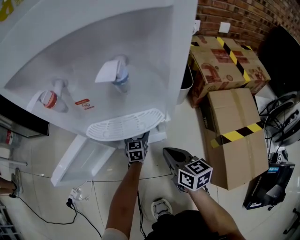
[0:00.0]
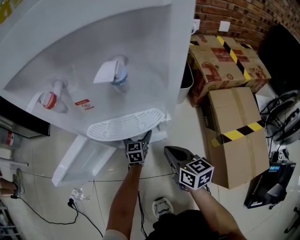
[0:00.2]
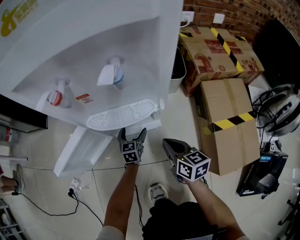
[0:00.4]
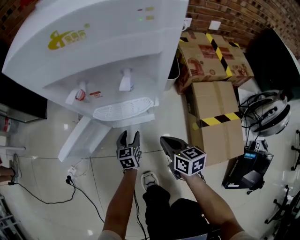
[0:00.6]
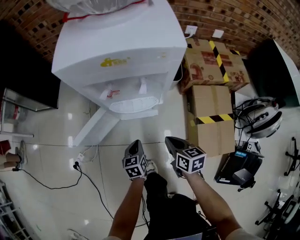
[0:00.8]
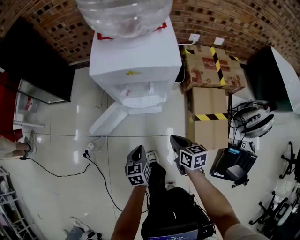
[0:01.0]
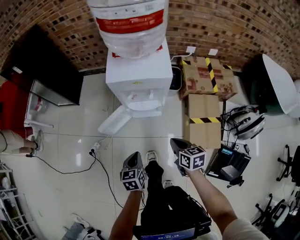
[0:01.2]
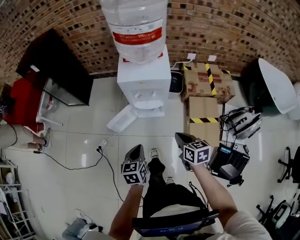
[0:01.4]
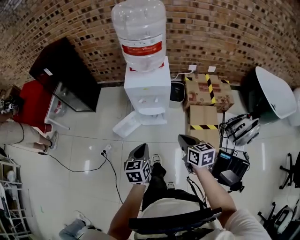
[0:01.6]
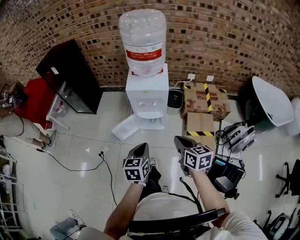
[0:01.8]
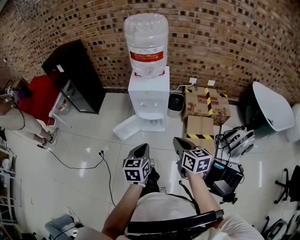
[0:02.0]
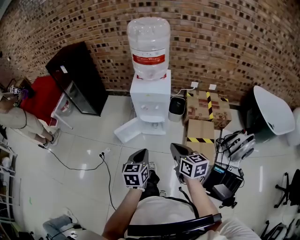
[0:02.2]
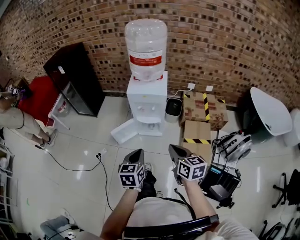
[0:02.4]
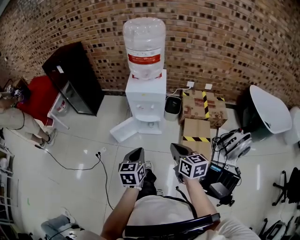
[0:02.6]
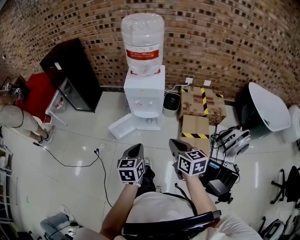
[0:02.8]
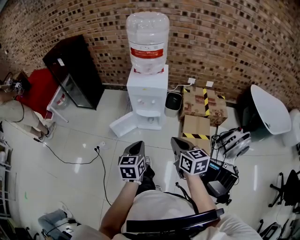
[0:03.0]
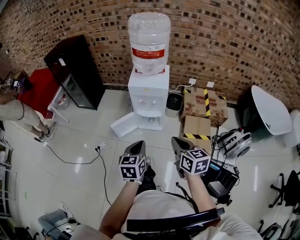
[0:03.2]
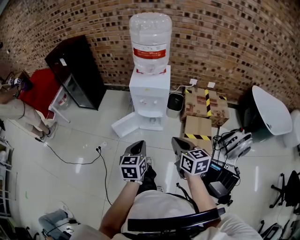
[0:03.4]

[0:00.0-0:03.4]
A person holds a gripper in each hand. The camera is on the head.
0:00.0 to 0:01.6: Both grippers move upward and backward, approximately 70 cm. The left gripper closes its fingers.
0:01.6 to 0:03.4: Both grippers move upward and backward, about 10 cm.

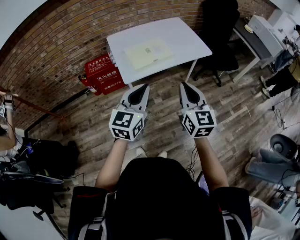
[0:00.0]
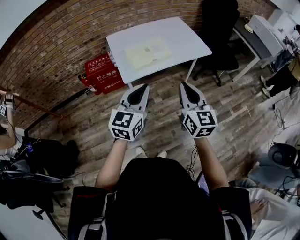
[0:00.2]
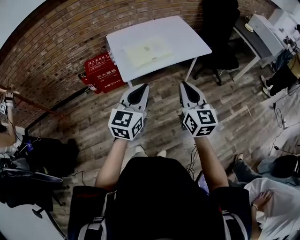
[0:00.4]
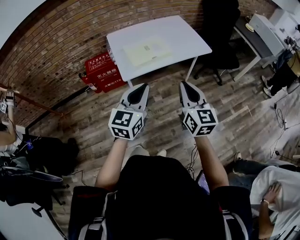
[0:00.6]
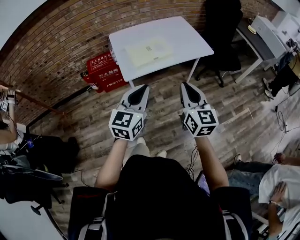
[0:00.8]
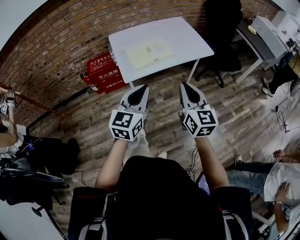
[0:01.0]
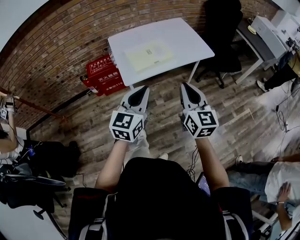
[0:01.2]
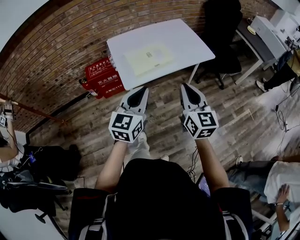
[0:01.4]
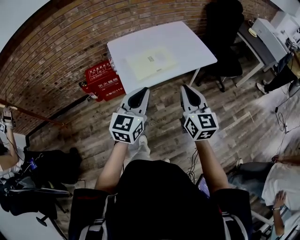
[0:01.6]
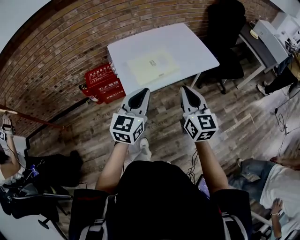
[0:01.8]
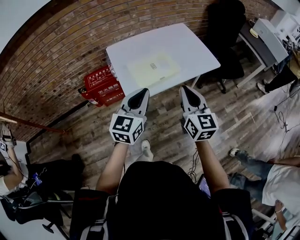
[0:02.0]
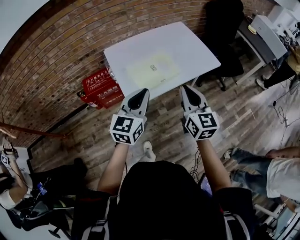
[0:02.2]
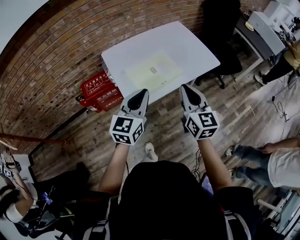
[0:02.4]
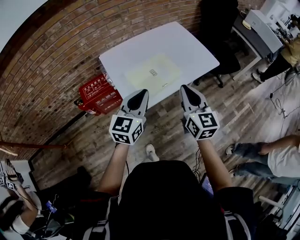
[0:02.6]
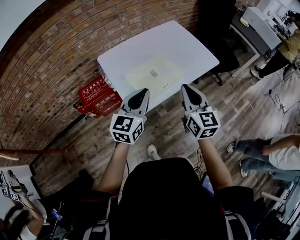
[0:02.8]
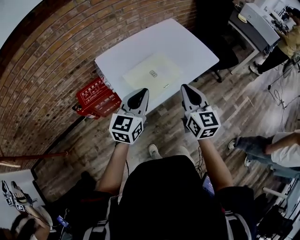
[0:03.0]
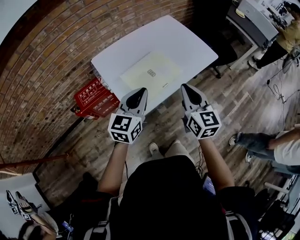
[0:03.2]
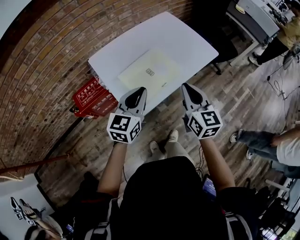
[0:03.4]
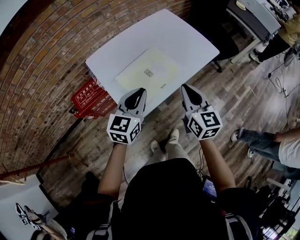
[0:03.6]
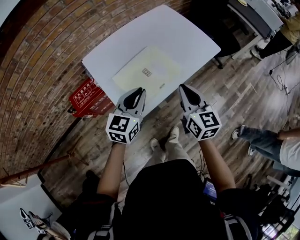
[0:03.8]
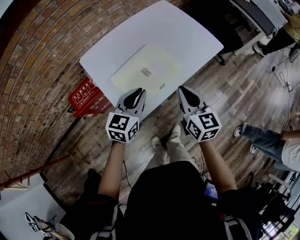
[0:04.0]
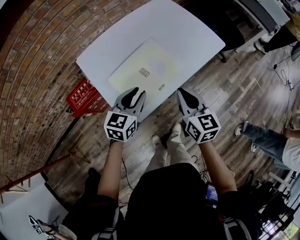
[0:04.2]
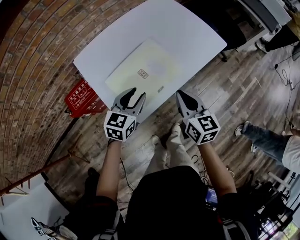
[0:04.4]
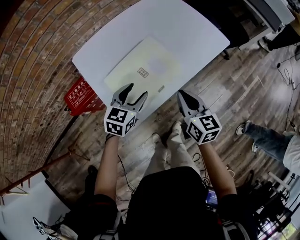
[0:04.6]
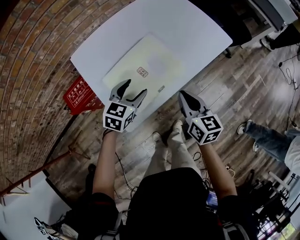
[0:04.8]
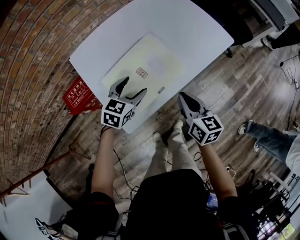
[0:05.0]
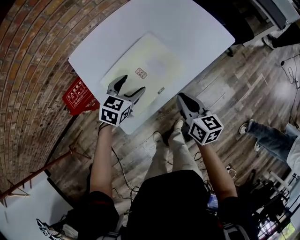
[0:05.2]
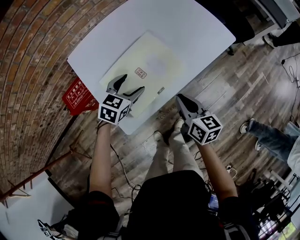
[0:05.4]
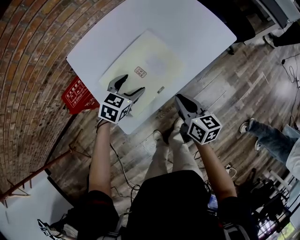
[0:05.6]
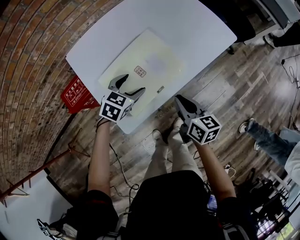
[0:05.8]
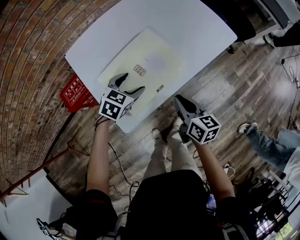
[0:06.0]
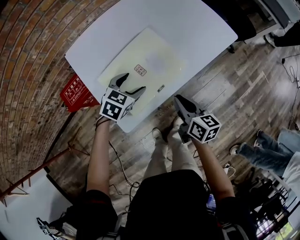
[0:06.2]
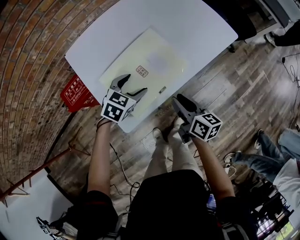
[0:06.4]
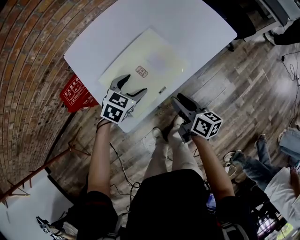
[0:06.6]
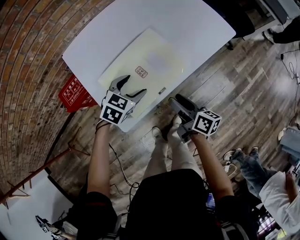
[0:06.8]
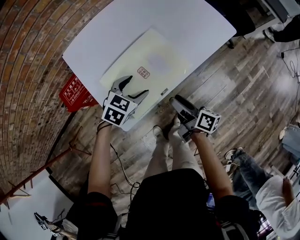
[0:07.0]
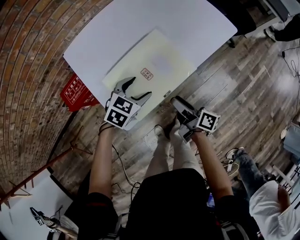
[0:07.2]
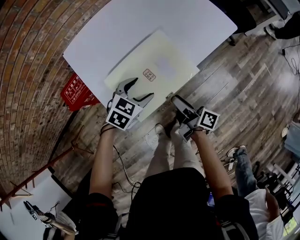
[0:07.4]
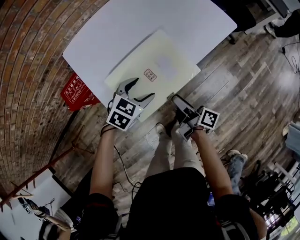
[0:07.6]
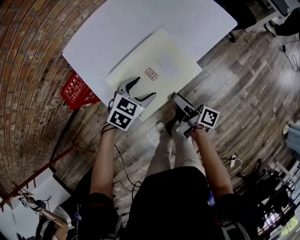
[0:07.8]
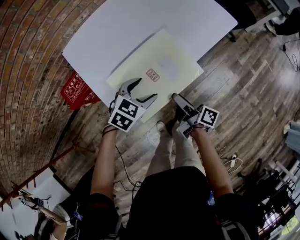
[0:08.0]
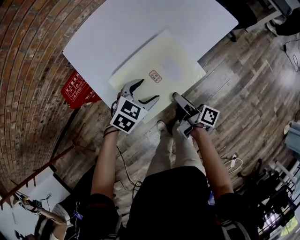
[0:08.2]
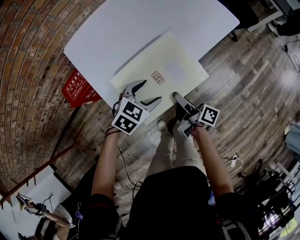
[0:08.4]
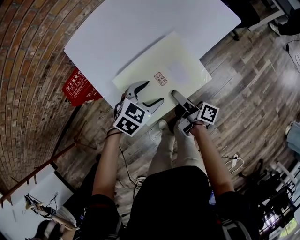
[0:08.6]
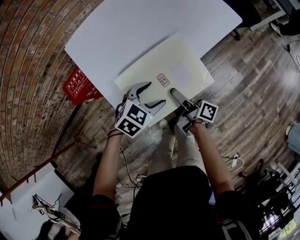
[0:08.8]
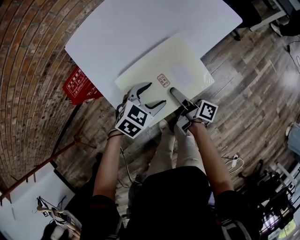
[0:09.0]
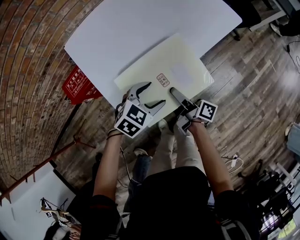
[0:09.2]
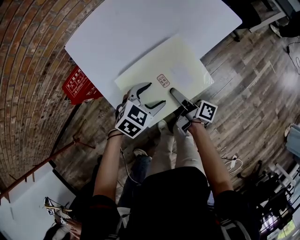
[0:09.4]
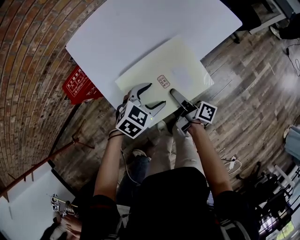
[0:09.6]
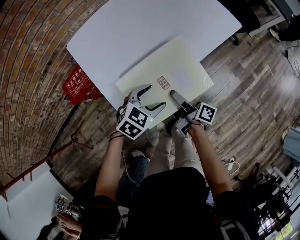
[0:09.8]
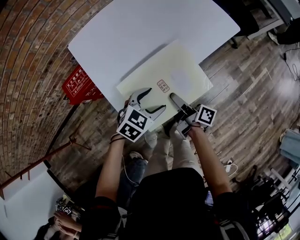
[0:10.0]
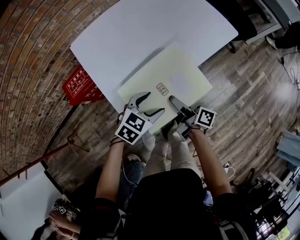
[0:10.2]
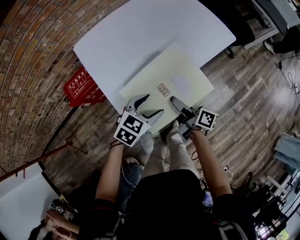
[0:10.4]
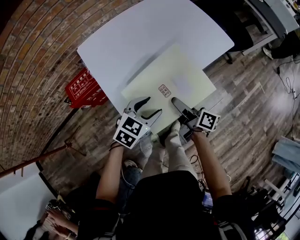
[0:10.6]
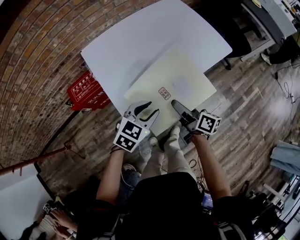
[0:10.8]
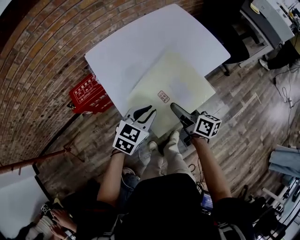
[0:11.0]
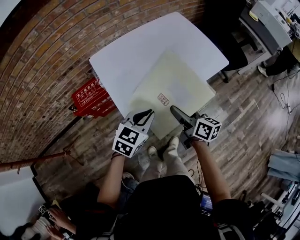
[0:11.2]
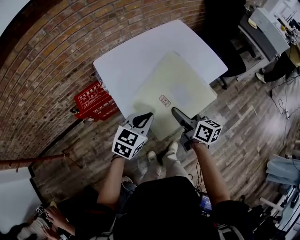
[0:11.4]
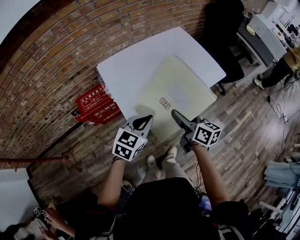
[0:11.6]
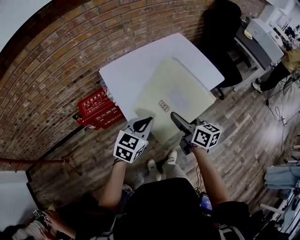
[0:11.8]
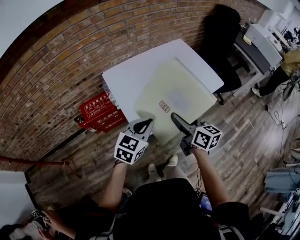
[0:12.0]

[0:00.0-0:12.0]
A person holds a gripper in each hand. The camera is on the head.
0:00.0 to 0:01.6: Both grippers move forward, approximately 10 cm.
0:01.6 to 0:03.0: The two grippers go about 20 cm forward and to the left.
0:03.0 to 0:04.4: Both grippers travel together downward and forward, roughly 20 cm. The left gripper changes its angle by about 20 degrees, and opens up.
0:04.4 to 0:06.0: The right gripper travels downward by approximately 10 cm. Meanwhile the left gripper is displaced downward and forward by some 10 cm, swivels about 20 degrees, and opens.
0:06.0 to 0:07.6: The right gripper shifts by approximately 5 cm, rolls clockwise, seen from behind, by some 40 degrees, and opens up; the left gripper shifts roughly 5 cm backward.
0:07.6 to 0:09.0: The left gripper heads backward, covering approximately 5 cm.
0:09.0 to 0:10.4: The left gripper changes place by approximately 5 cm.
0:10.4 to 0:12.0: The left gripper goes approximately 20 cm upward and to the left, turns by approximately 20 degrees, and closes up; the right gripper shifts some 20 cm upward, and rotates around the line of its fingers by roughly 40 degrees, counterclockwise from behind.

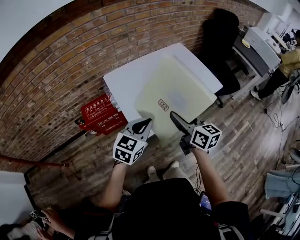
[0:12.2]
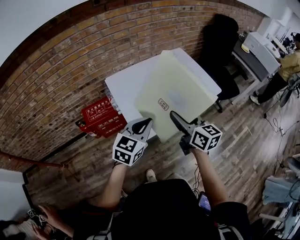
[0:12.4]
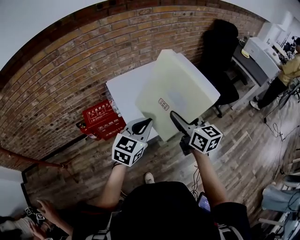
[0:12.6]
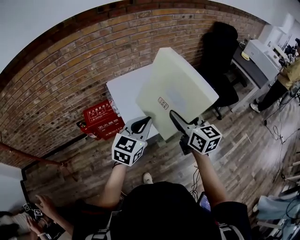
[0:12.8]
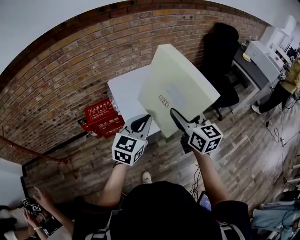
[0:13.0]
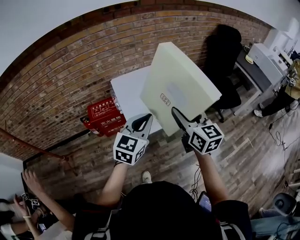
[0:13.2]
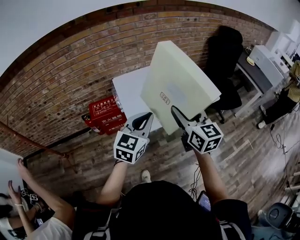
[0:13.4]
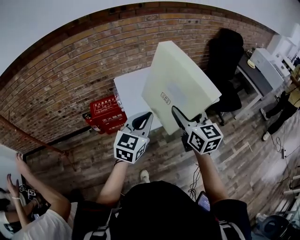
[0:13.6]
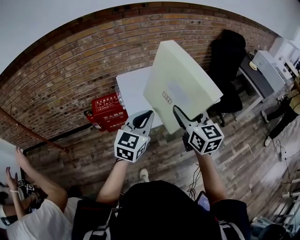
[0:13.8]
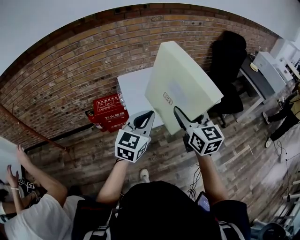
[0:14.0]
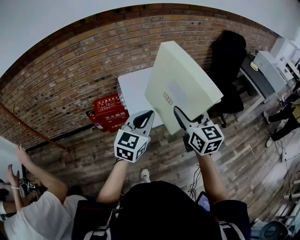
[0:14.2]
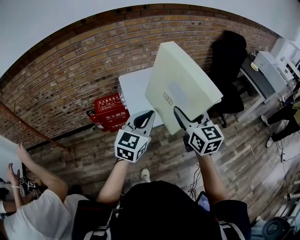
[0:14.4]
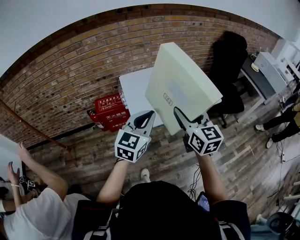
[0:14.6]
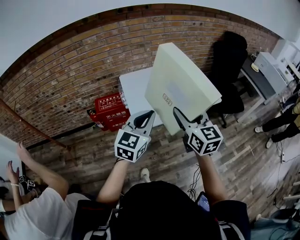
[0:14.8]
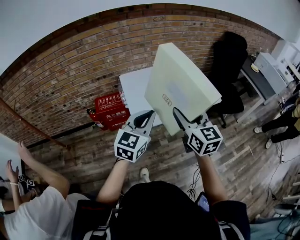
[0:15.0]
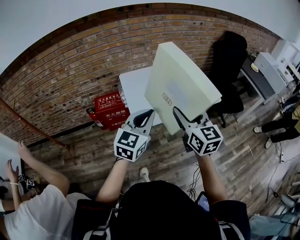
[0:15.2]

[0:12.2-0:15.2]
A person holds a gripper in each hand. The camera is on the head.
0:12.2 to 0:13.8: The grippers both shift upward, backward and to the right by some 15 cm. The right gripper turns by some 20 degrees, while the left gripper turns by some 20 degrees.
0:13.8 to 0:15.2: The grippers stay close to where they were, moving slightly.

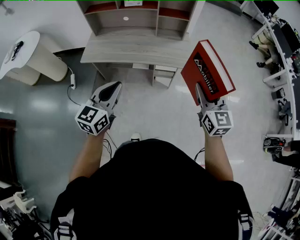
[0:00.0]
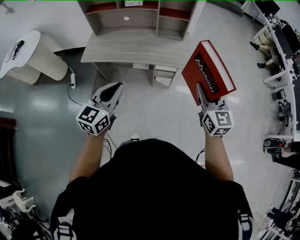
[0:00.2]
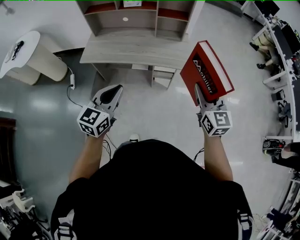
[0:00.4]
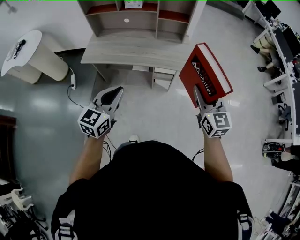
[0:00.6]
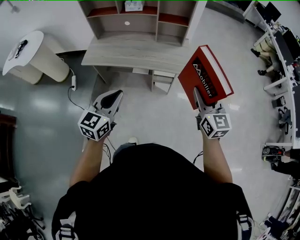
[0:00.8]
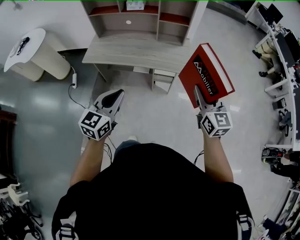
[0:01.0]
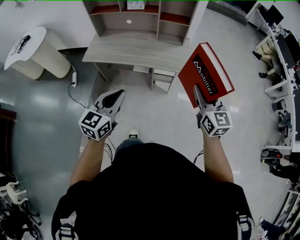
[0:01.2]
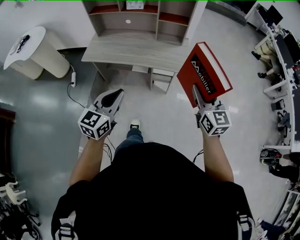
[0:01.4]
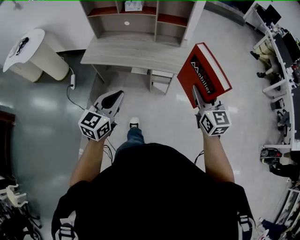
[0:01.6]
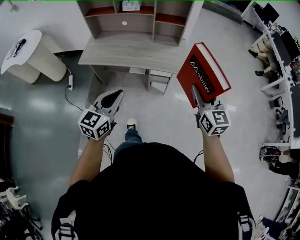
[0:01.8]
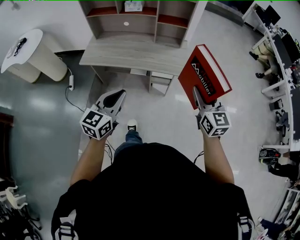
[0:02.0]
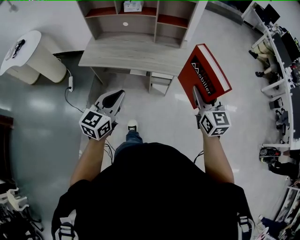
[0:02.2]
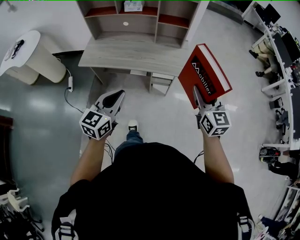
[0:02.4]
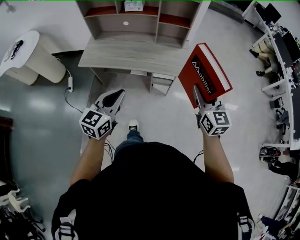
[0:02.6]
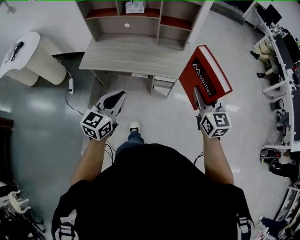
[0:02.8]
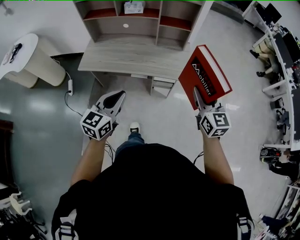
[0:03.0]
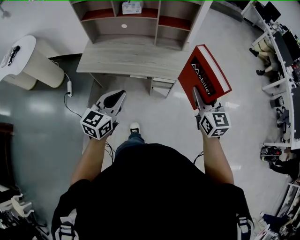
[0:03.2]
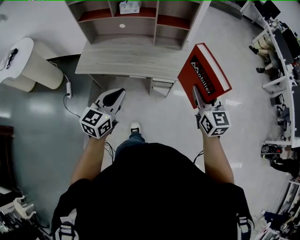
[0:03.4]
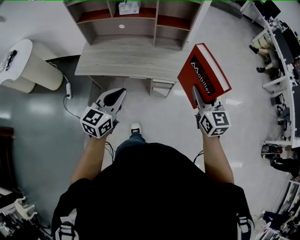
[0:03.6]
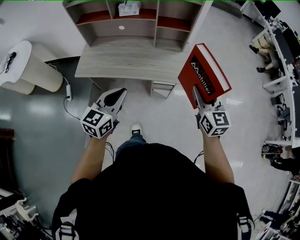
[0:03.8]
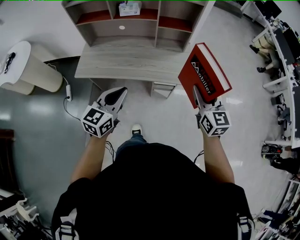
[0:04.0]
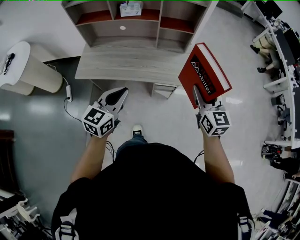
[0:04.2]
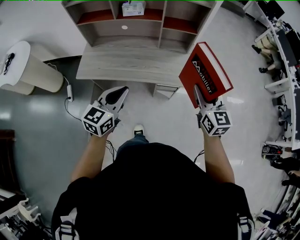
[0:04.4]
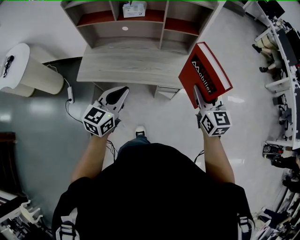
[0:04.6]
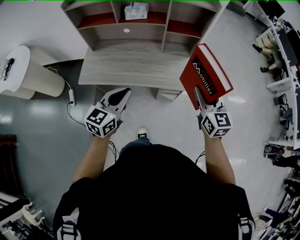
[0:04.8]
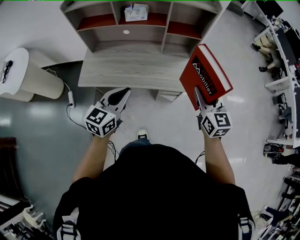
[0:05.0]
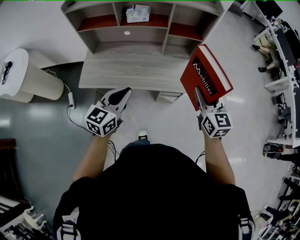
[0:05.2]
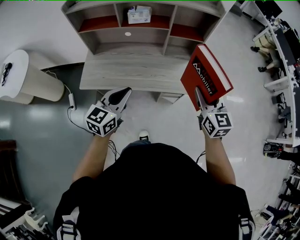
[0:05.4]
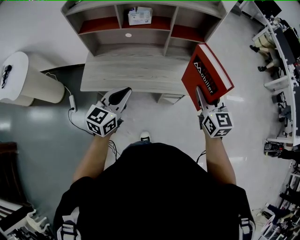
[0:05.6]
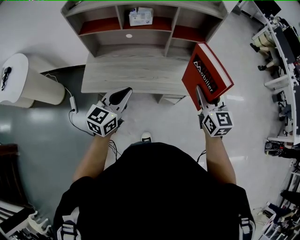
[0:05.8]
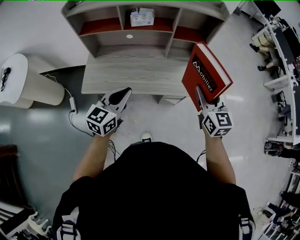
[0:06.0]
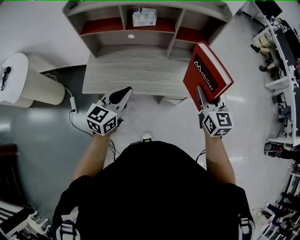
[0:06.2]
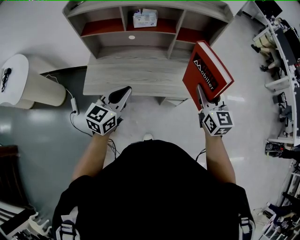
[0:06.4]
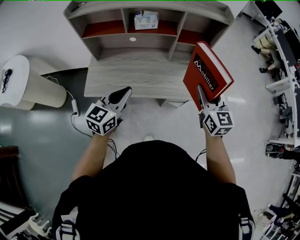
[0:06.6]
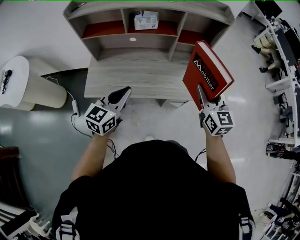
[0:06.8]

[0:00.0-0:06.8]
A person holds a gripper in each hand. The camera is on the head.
0:00.0 to 0:01.4: The left gripper heads to the right, covering approximately 5 cm.
0:01.4 to 0:02.8: Both grippers move forward, about 5 cm.
0:02.8 to 0:04.0: The grippers both shift forward by roughly 10 cm.
0:04.0 to 0:05.4: Both grippers move to the left and forward, some 15 cm.
0:05.4 to 0:06.8: The left gripper heads to the left, covering approximately 5 cm. The right gripper goes approximately 10 cm to the left and forward.
